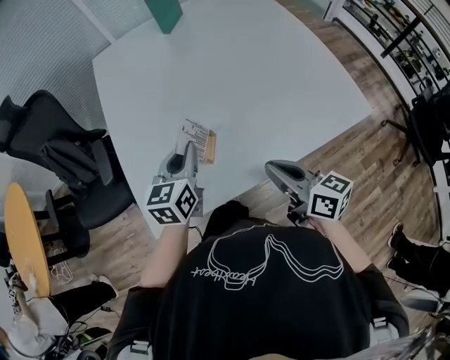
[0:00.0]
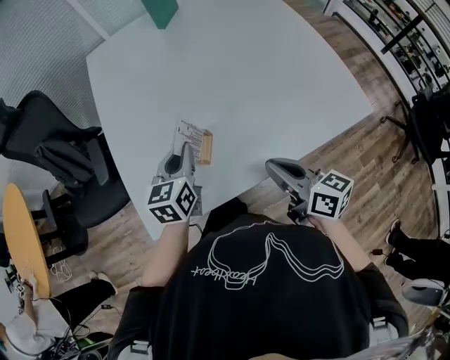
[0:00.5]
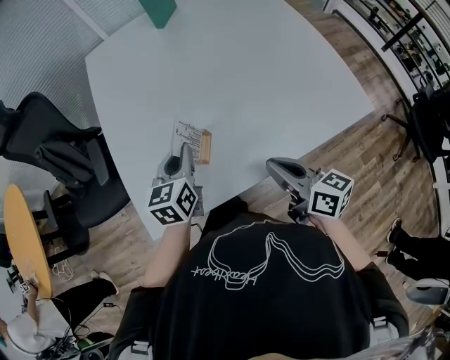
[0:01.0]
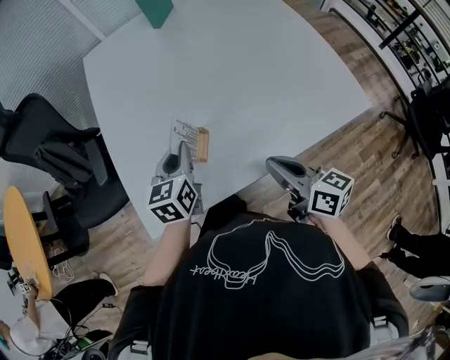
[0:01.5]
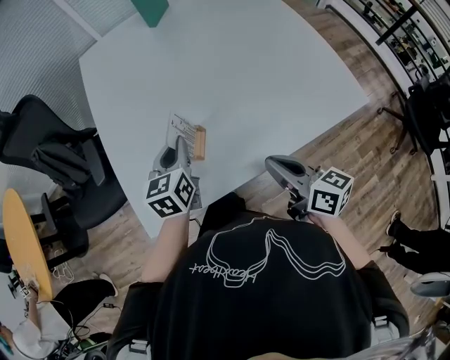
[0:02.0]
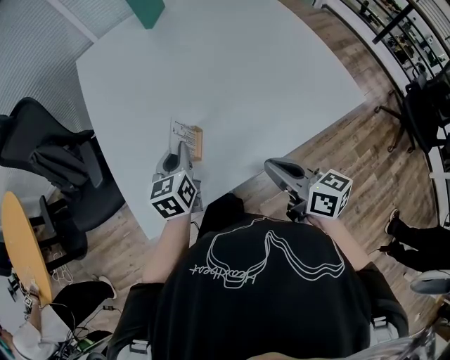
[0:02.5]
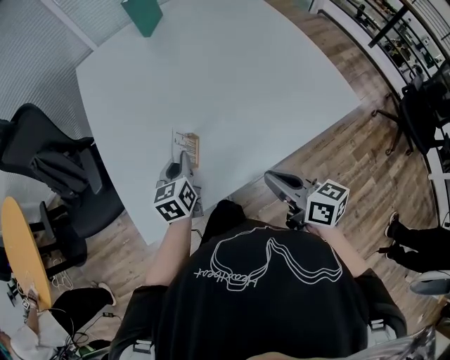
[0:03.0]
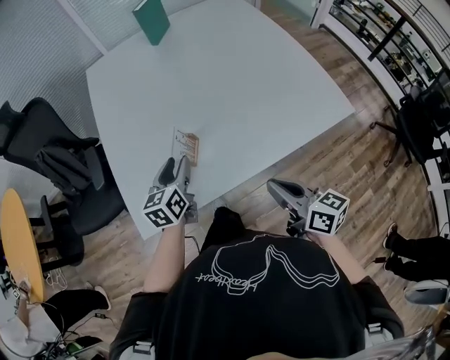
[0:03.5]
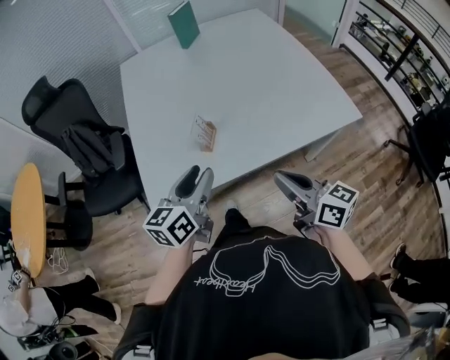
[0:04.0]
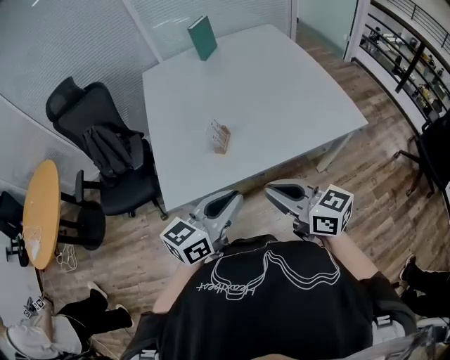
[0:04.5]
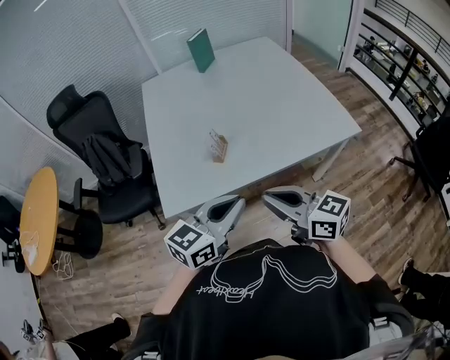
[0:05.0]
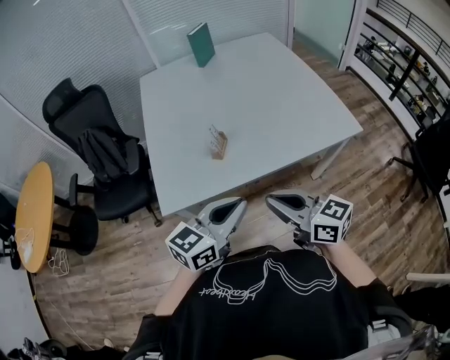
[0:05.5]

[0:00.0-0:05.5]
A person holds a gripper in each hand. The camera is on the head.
0:00.0 to 0:02.0: There are only small adjustments of the grippers.
0:02.0 to 0:03.5: The left gripper shifts by some 5 cm, and opens its fingers. Meanwhile the right gripper moves backward, about 5 cm.
0:03.5 to 0:05.5: The right gripper heads backward, upward and to the left, covering approximately 15 cm, and swivels some 20 degrees; the left gripper heads backward and upward, covering approximately 30 cm, swivels about 30 degrees, and closes its fingers.

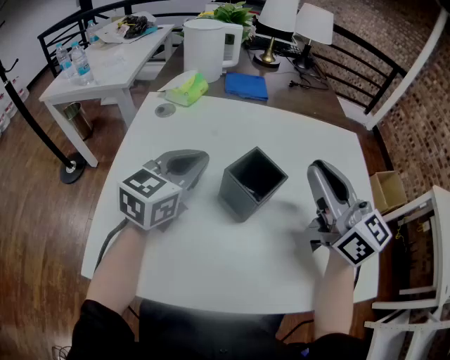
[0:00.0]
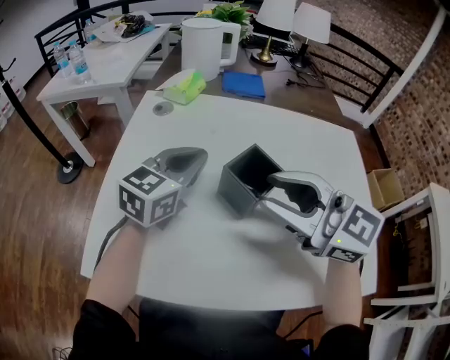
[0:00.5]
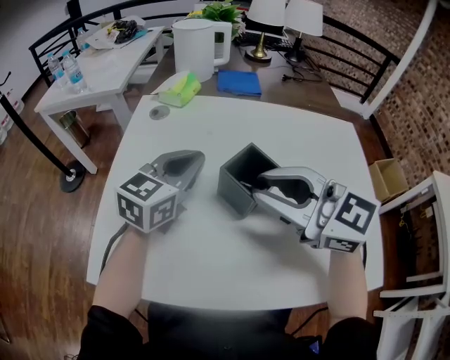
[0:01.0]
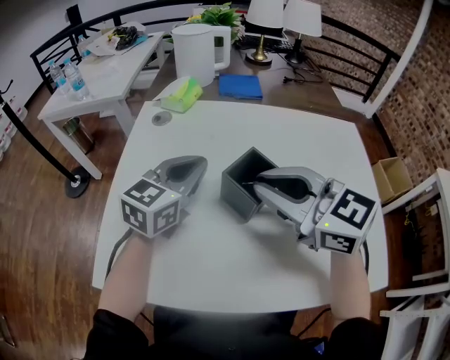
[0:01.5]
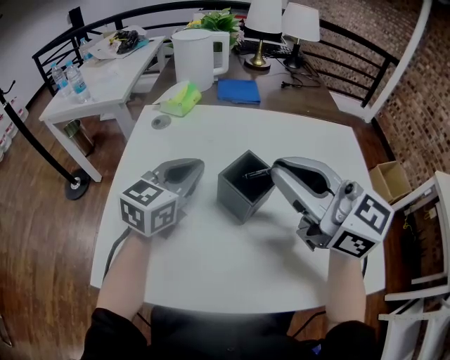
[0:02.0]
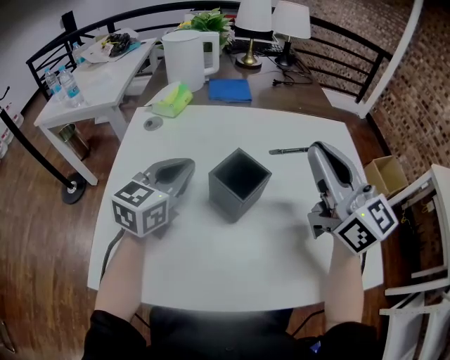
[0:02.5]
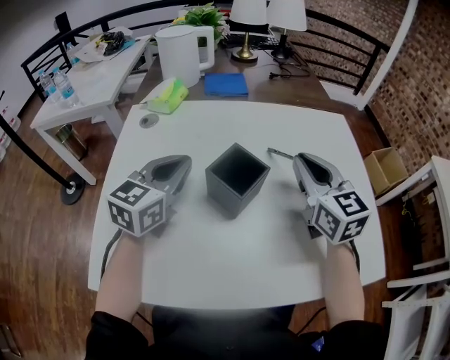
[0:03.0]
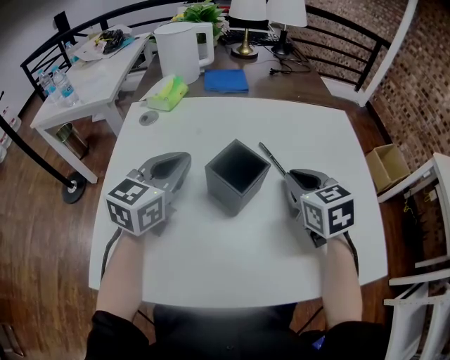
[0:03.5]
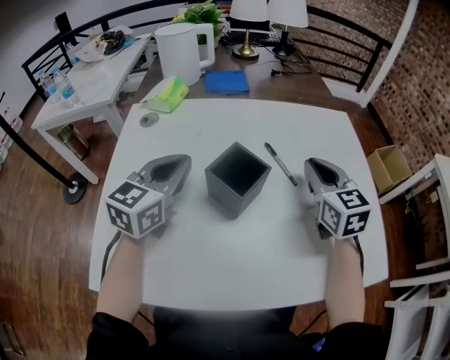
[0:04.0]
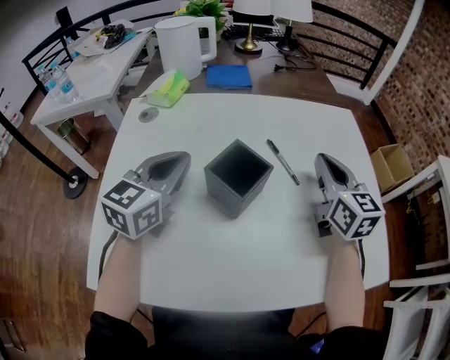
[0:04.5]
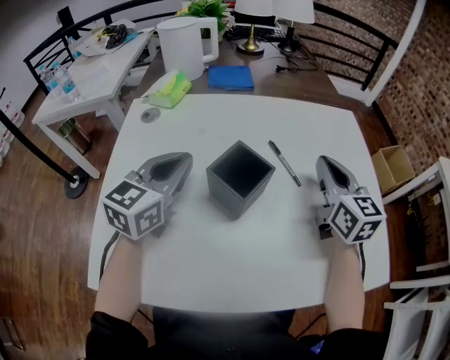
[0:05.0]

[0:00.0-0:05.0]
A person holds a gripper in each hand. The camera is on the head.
0:00.0 to 0:02.5: The right gripper travels to the left and back again, about 10 cm each way, and opens, then closes once more.
0:02.5 to 0:05.0: The right gripper moves downward, to the right and forward, some 15 cm, and changes its angle by approximately 30 degrees.

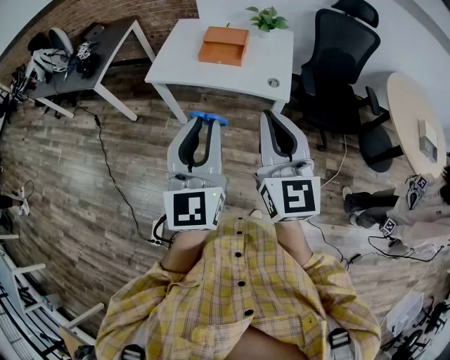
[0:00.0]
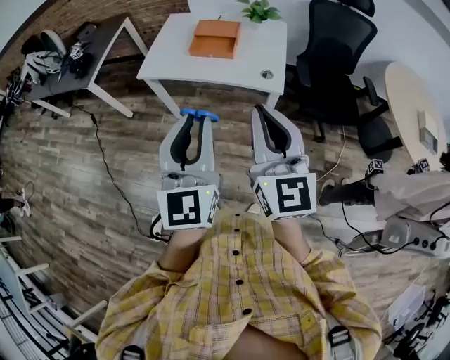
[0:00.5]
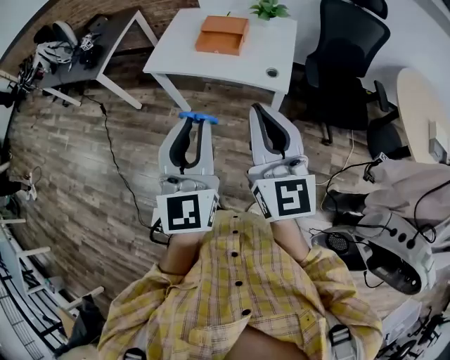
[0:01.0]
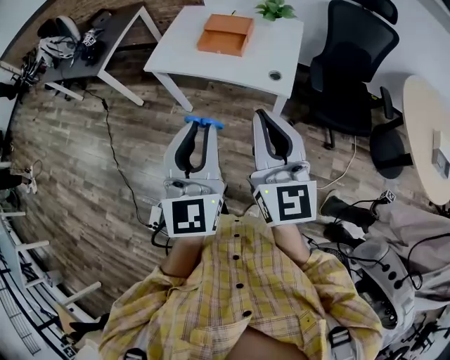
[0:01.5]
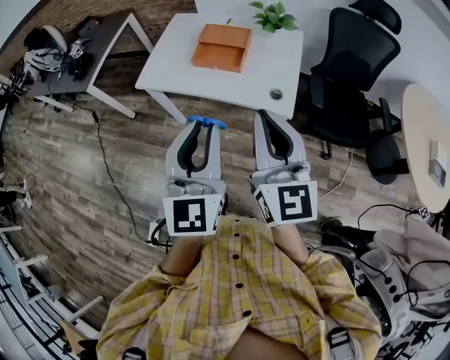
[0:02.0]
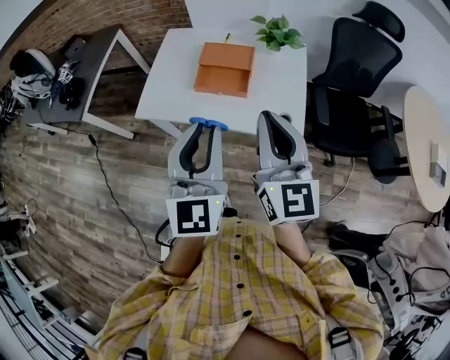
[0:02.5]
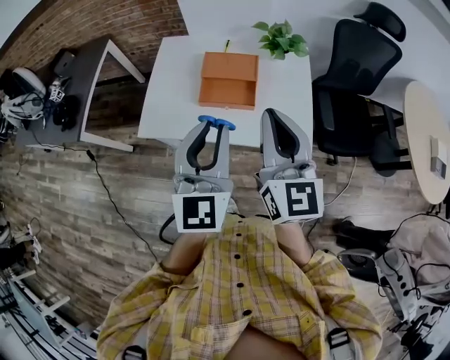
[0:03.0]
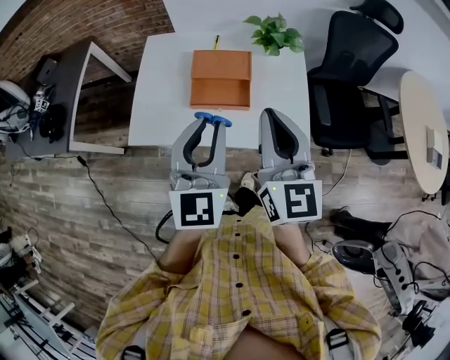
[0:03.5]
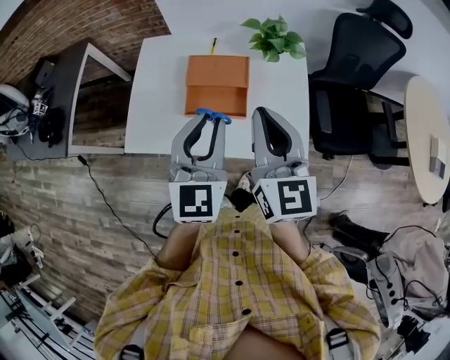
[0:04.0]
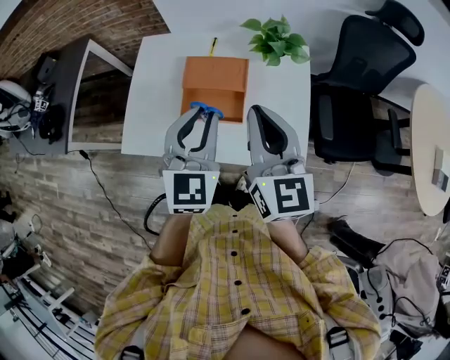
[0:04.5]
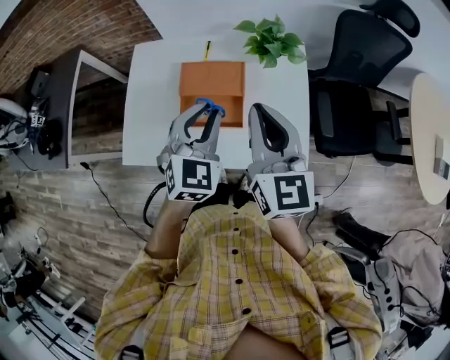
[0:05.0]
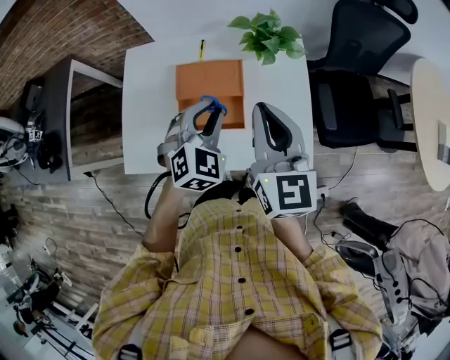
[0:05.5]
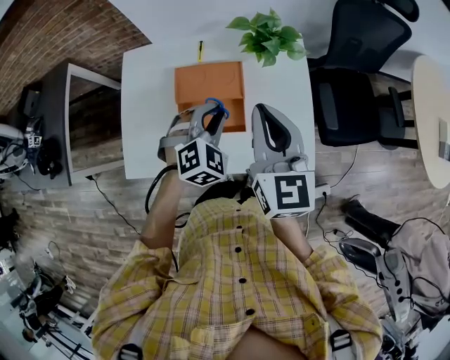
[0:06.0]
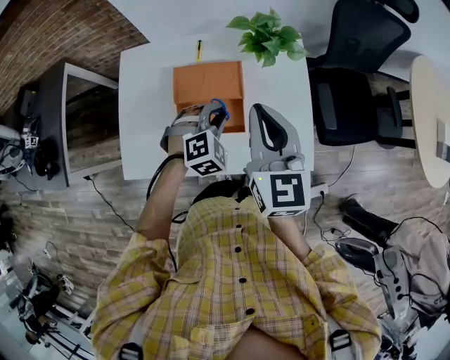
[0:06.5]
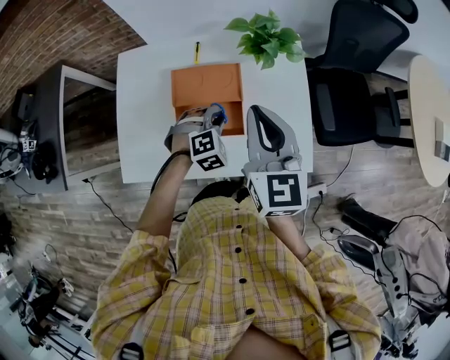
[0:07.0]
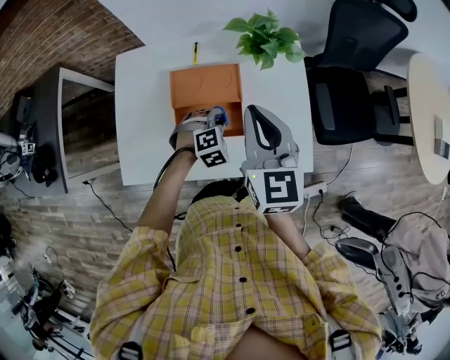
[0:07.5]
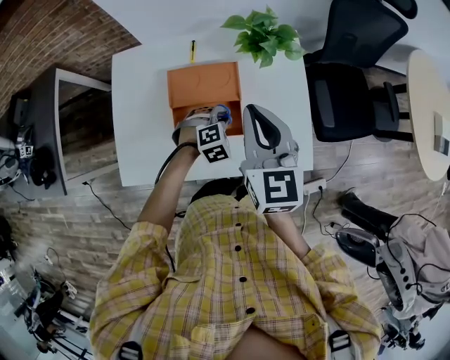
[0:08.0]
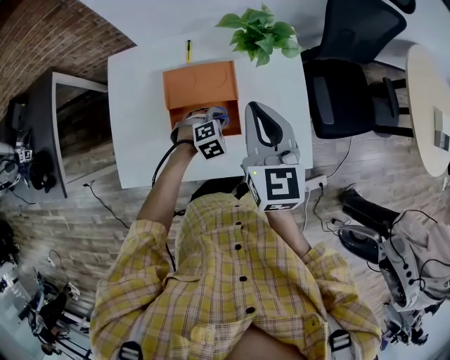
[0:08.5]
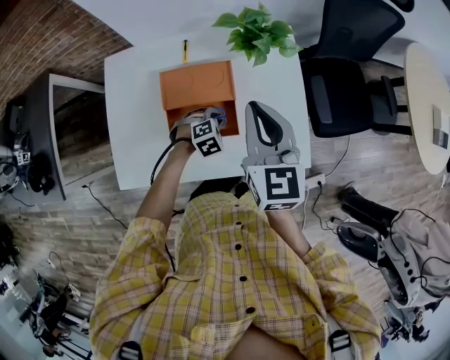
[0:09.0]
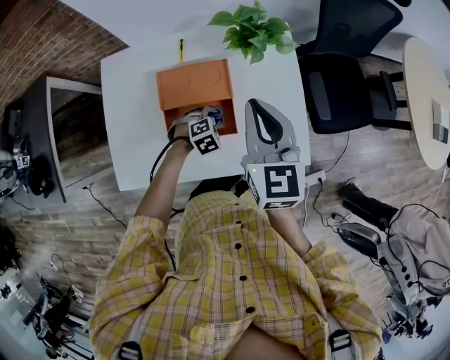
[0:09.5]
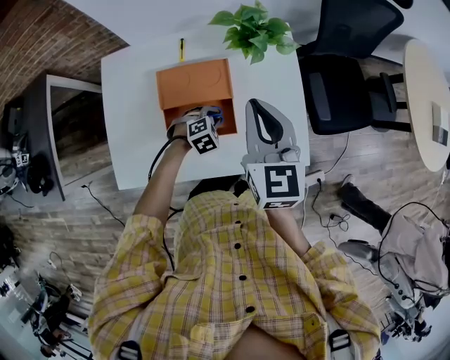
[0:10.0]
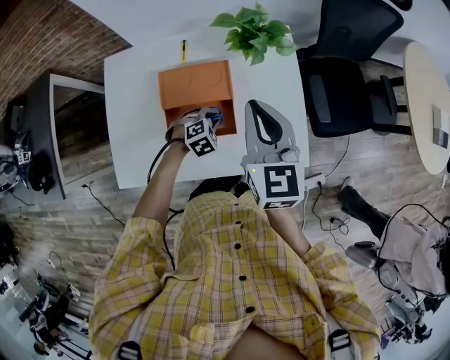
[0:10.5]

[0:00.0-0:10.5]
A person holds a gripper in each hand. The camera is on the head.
0:00.0 to 0:02.0: The right gripper shifts some 15 cm forward; the left gripper travels forward and to the right by approximately 15 cm.
0:02.0 to 0:04.0: Both grippers move forward, some 35 cm.
0:04.0 to 0:06.5: The left gripper shifts approximately 25 cm downward and forward, and tips its fingers downward by approximately 40 degrees. Meanwhile the right gripper is displaced forward and downward by roughly 15 cm.
0:06.5 to 0:08.5: The left gripper is displaced downward by about 15 cm.
0:08.5 to 0:10.5: The grippers stay close to where they were, moving slightly.

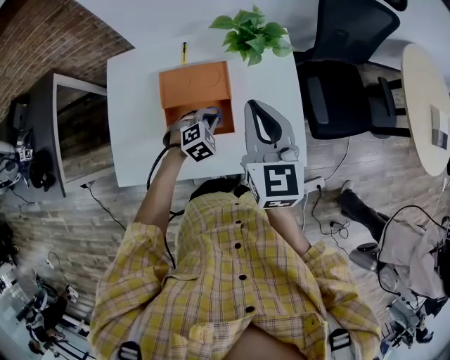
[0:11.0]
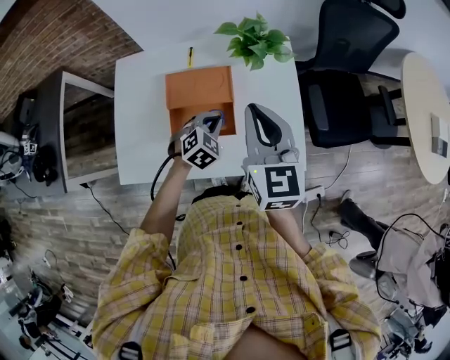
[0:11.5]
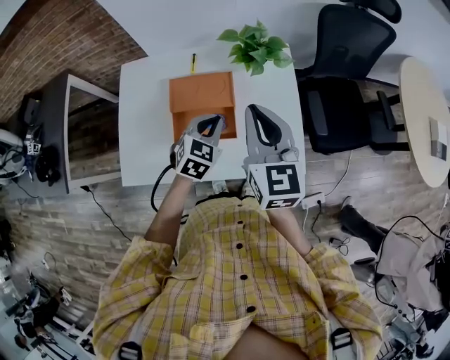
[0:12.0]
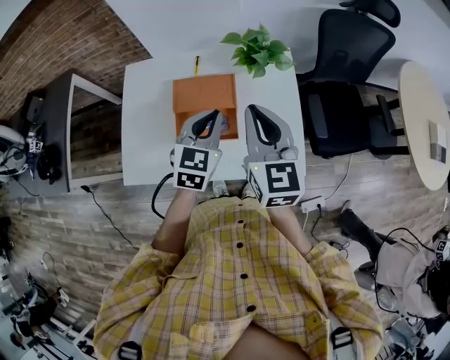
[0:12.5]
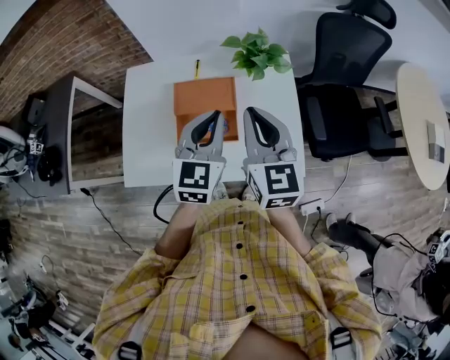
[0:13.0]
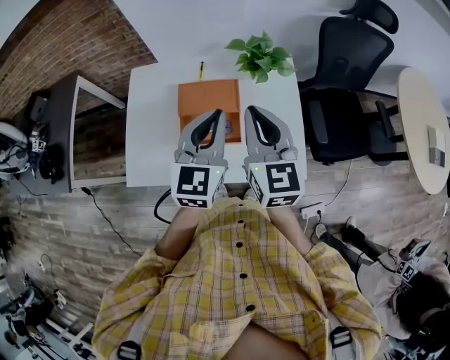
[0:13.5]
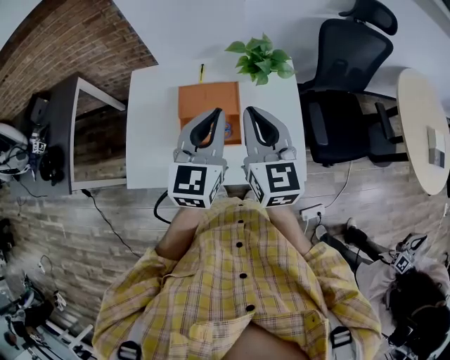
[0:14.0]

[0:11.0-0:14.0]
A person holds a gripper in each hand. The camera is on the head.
0:11.0 to 0:12.5: The left gripper shifts approximately 25 cm upward, and points its fingers about 30 degrees further upward.
0:12.5 to 0:14.0: The left gripper moves upward, some 10 cm.

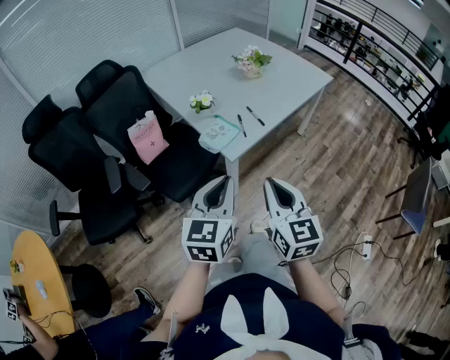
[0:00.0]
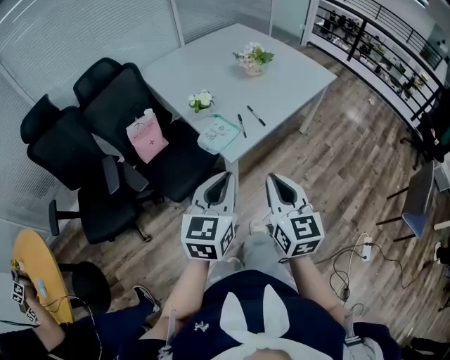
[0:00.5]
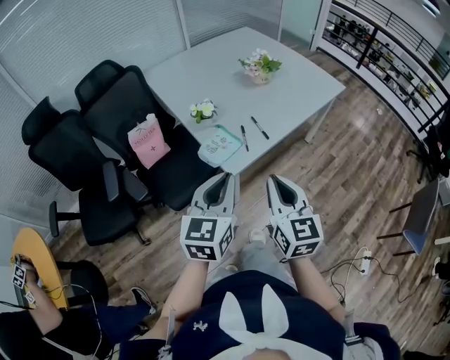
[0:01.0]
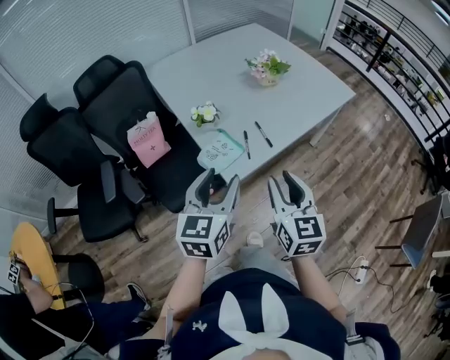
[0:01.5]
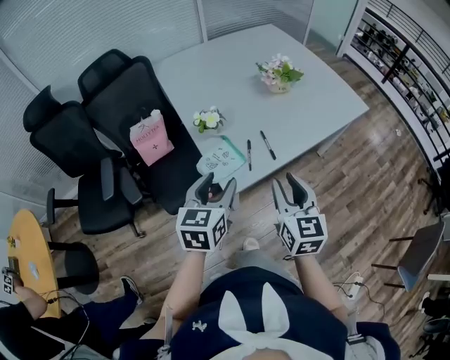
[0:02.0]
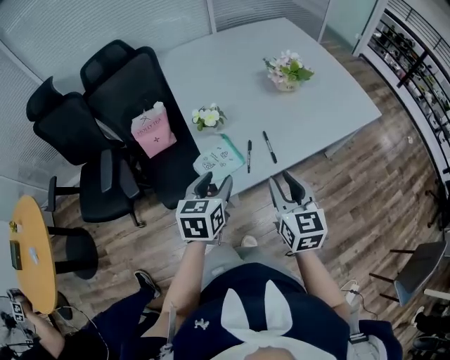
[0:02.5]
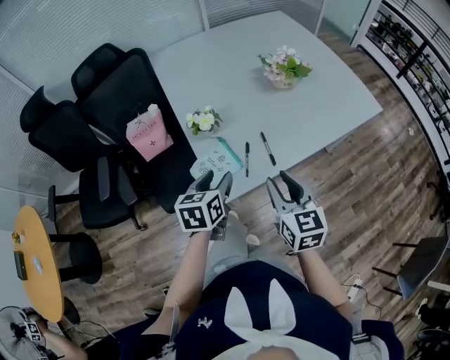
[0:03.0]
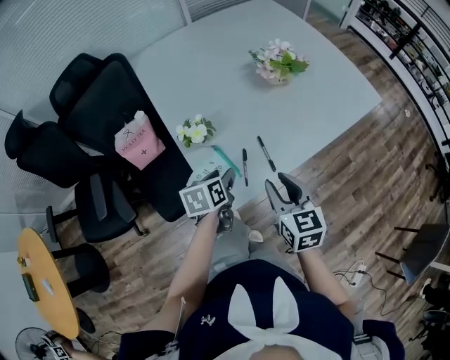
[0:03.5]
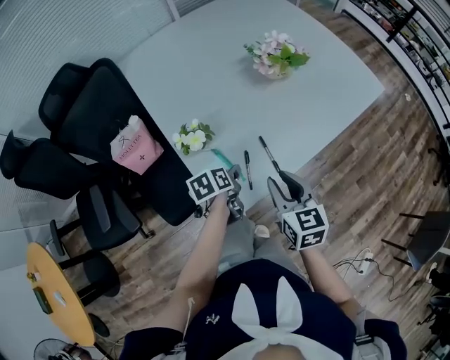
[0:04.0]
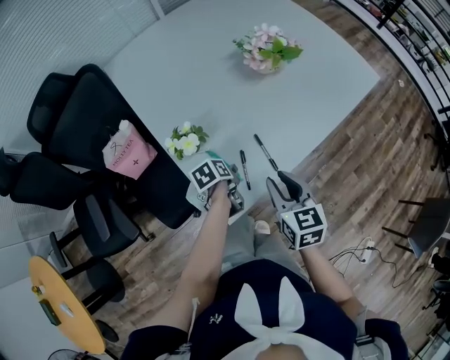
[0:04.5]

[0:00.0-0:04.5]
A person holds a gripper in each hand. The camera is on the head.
0:00.0 to 0:02.0: The grippers both shift forward by approximately 20 cm. The right gripper opens, while the left gripper opens up.
0:02.0 to 0:04.5: The right gripper heads forward and downward, covering approximately 20 cm; the left gripper moves downward and forward, roughly 35 cm, and tilts its fingers roughly 40 degrees downward.
